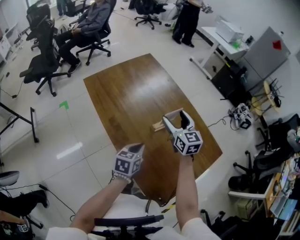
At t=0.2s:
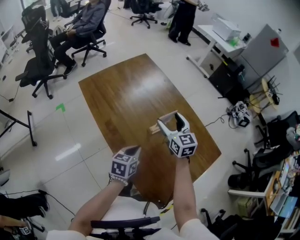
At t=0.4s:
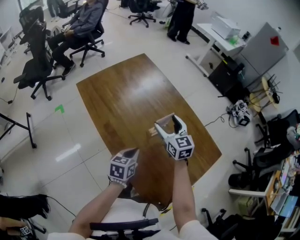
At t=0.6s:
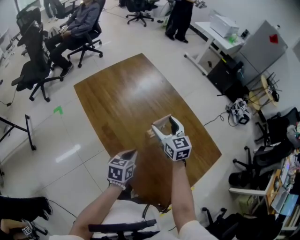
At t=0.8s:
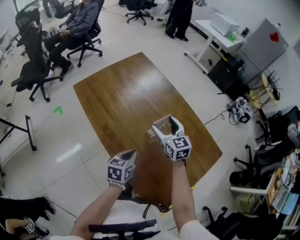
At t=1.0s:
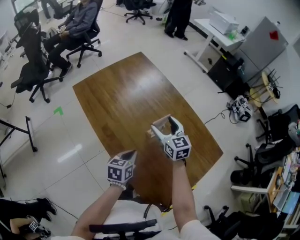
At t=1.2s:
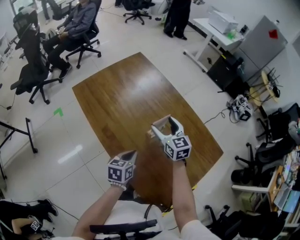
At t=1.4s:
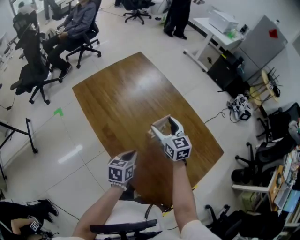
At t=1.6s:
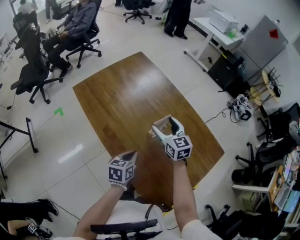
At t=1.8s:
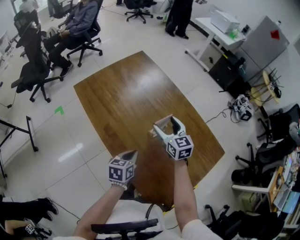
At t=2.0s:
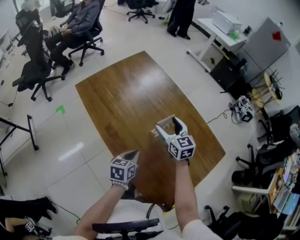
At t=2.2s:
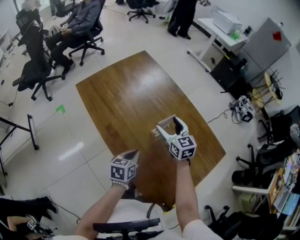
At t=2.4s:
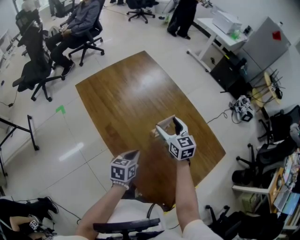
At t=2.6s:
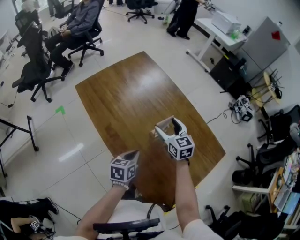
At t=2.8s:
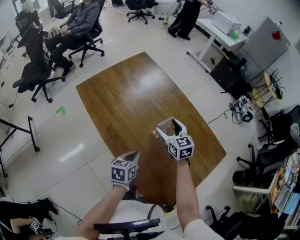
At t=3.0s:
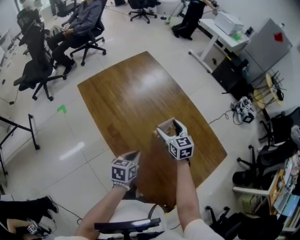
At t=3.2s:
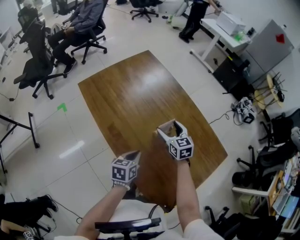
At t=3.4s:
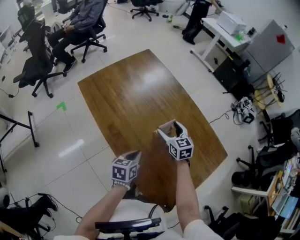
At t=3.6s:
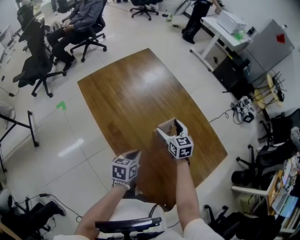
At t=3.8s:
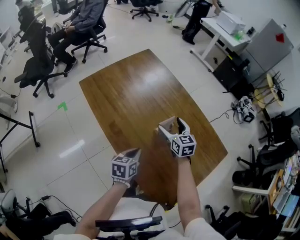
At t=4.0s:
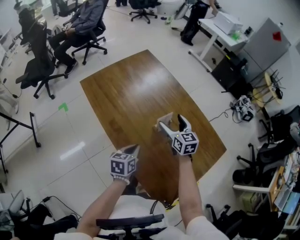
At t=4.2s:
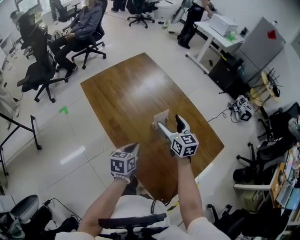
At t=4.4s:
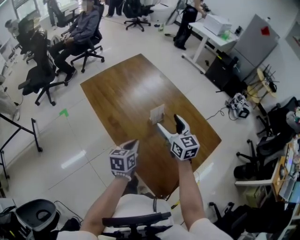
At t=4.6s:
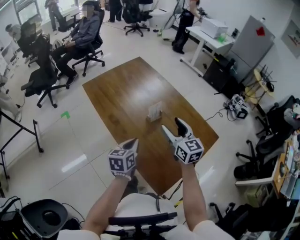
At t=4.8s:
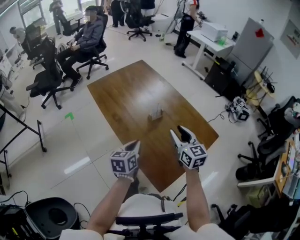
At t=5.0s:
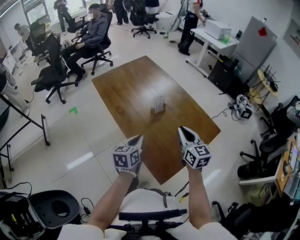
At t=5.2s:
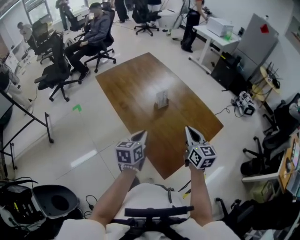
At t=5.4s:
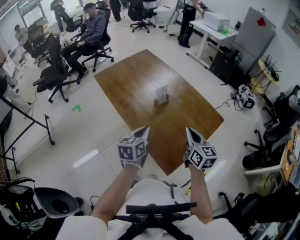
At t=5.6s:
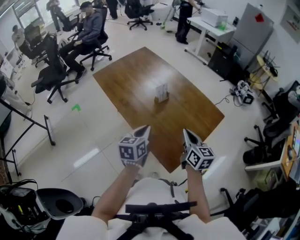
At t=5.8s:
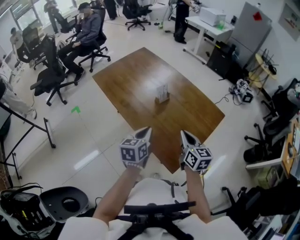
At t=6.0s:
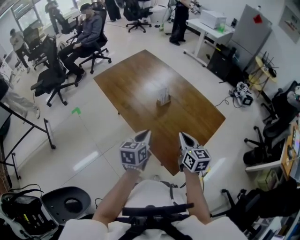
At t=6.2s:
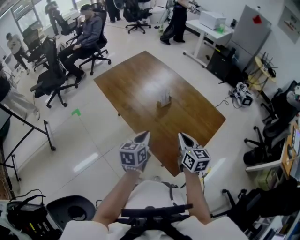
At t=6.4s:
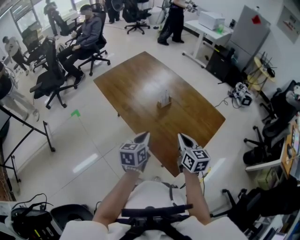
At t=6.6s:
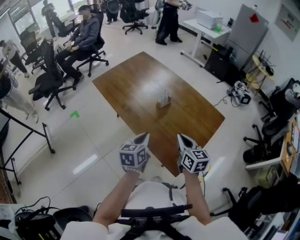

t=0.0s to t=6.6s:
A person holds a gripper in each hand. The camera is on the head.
t=0.0s to t=1.6s: The left gripper moves about 5 cm. Meanwhile the right gripper is displaced downward by roughly 5 cm.
t=1.6s to t=3.2s: The right gripper shifts roughly 5 cm downward.
t=3.2s to t=5.0s: The right gripper is displaced backward and upward by approximately 30 cm, and closes; the left gripper travels backward and upward by roughly 20 cm.
t=5.0s to t=6.6s: The right gripper is displaced backward and to the left by about 10 cm.

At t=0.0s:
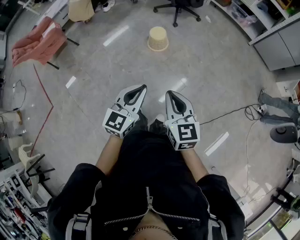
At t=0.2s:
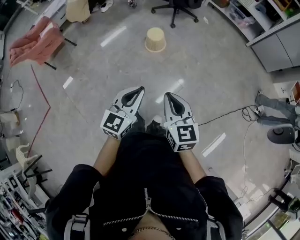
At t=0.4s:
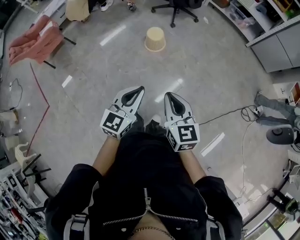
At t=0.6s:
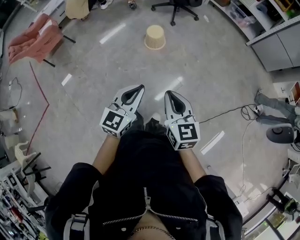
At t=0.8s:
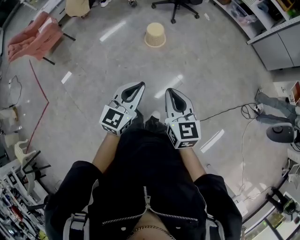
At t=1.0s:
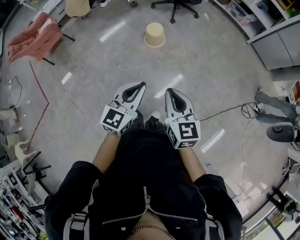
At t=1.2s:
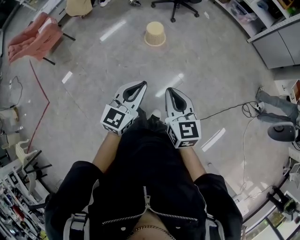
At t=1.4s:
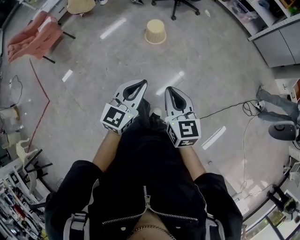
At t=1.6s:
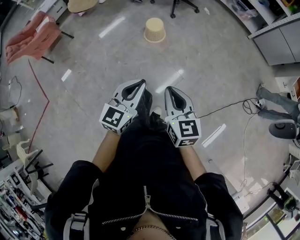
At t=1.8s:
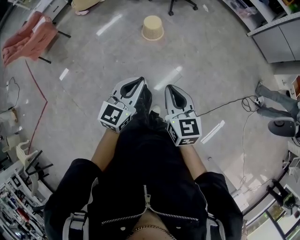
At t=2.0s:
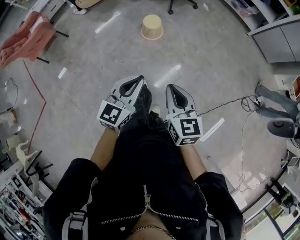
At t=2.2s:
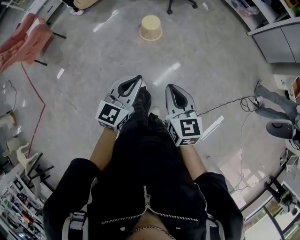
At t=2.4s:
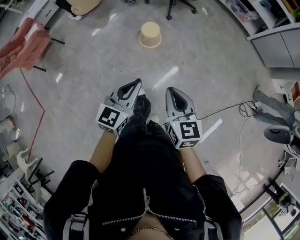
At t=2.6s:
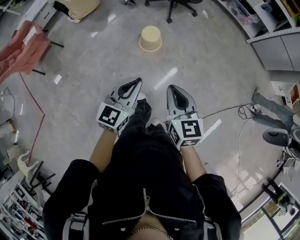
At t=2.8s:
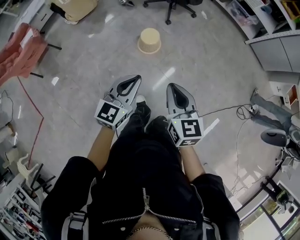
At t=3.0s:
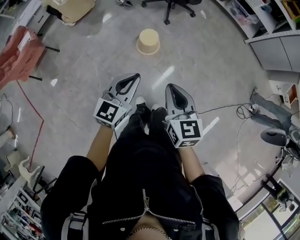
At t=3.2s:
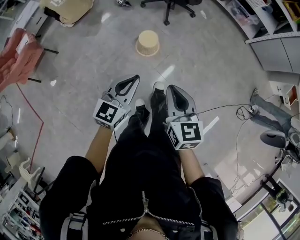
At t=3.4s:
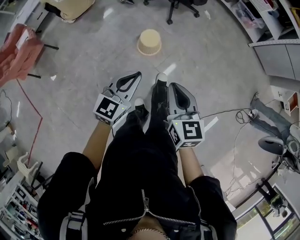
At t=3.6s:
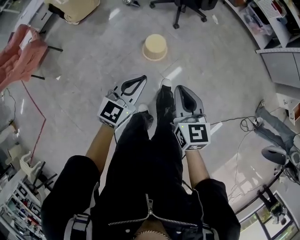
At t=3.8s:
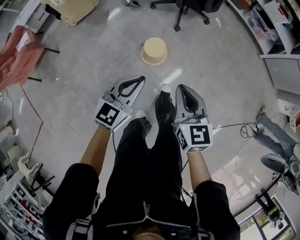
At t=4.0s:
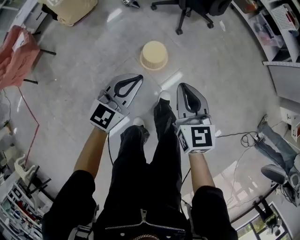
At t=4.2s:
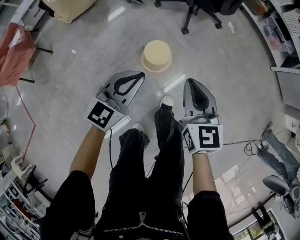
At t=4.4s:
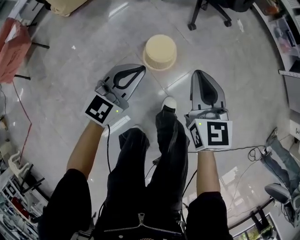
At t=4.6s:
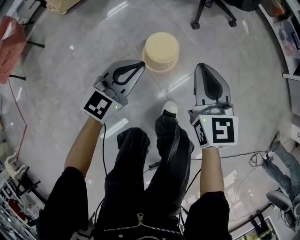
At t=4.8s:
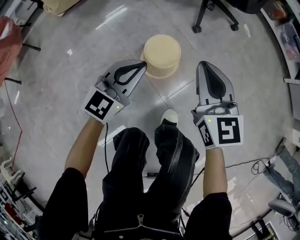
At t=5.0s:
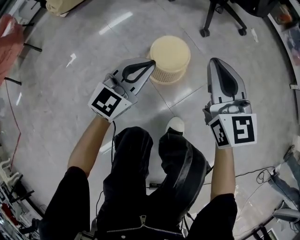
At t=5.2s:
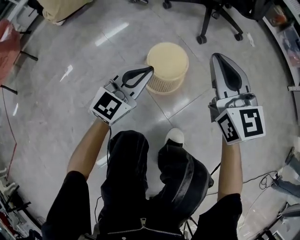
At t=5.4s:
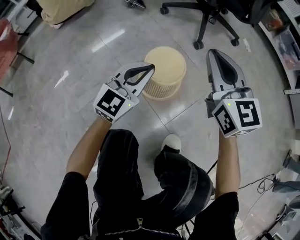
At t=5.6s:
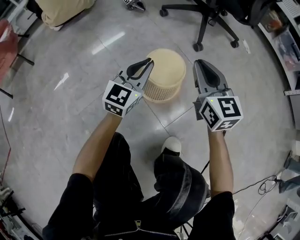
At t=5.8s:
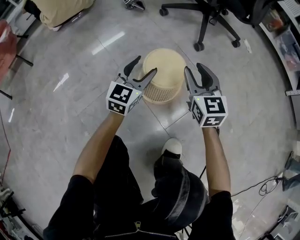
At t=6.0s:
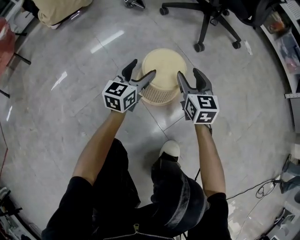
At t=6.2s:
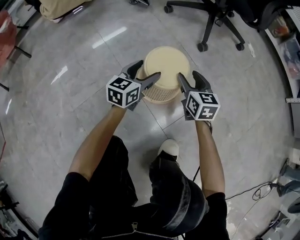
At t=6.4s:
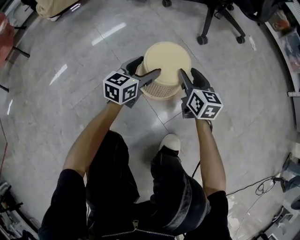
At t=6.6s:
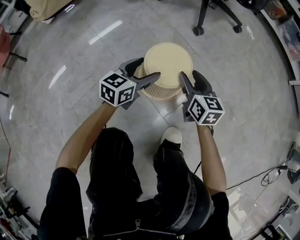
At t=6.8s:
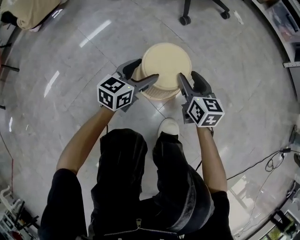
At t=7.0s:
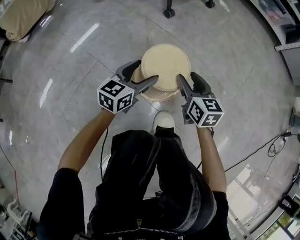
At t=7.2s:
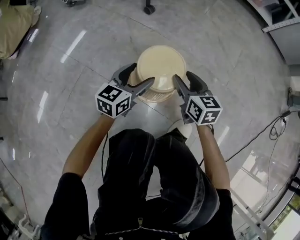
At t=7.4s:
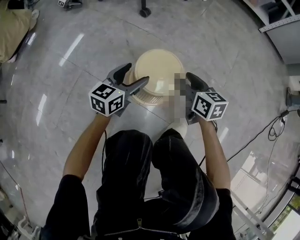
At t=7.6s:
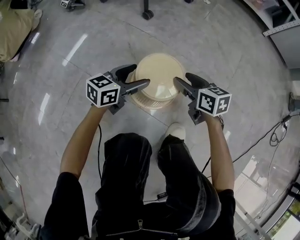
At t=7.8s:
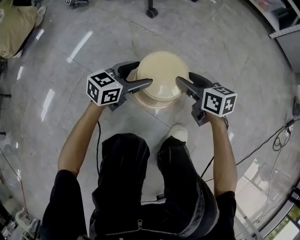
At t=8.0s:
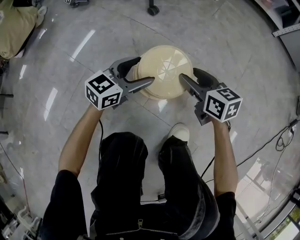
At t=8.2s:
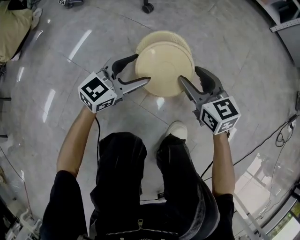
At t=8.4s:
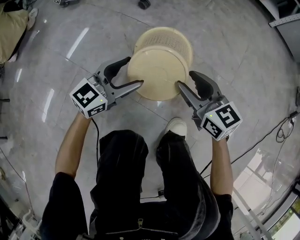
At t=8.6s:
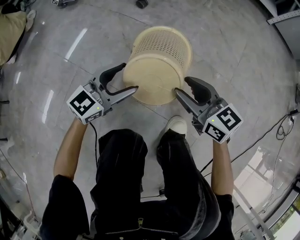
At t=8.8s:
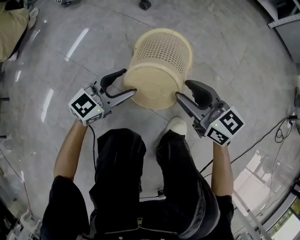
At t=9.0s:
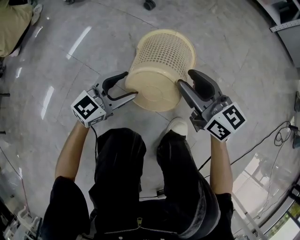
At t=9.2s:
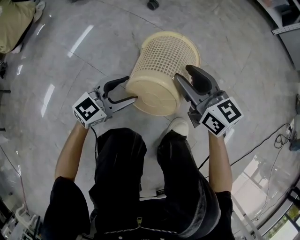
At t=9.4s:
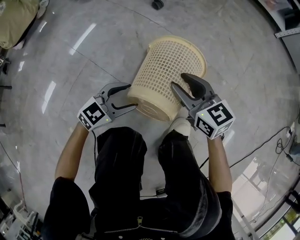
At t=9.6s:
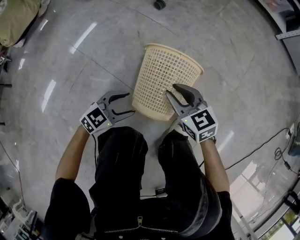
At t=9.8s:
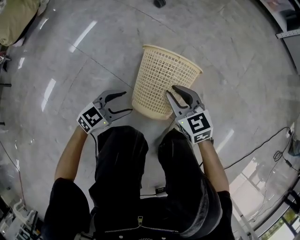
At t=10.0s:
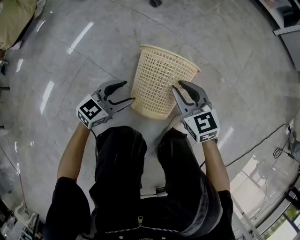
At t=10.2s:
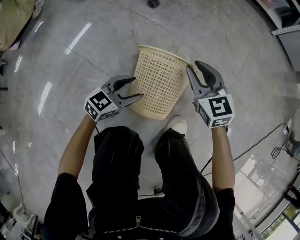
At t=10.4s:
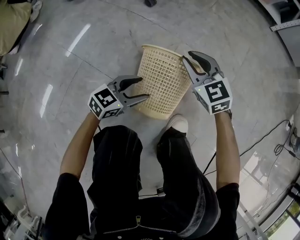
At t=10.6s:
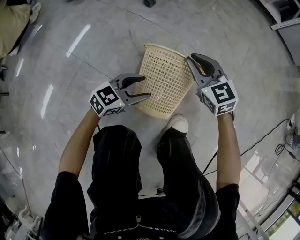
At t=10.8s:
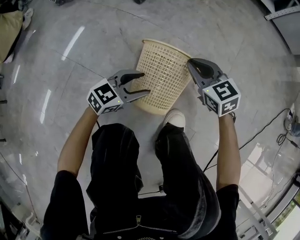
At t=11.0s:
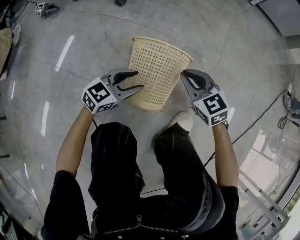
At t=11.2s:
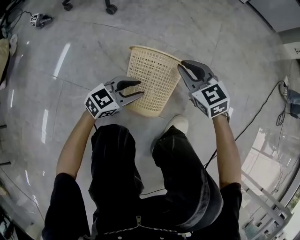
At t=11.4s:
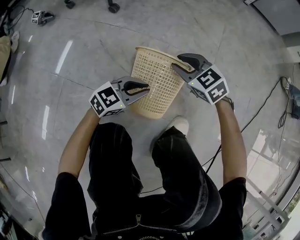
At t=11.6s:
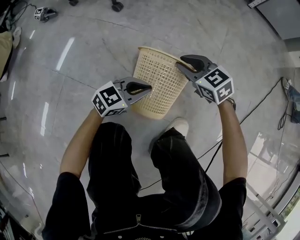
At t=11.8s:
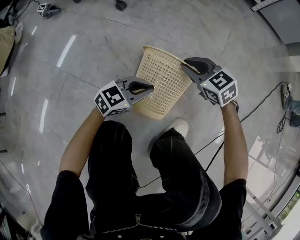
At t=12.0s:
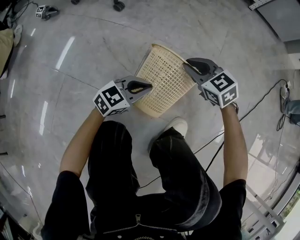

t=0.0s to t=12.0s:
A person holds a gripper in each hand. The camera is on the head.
t=0.0s to t=1.6s: There are only small adjustments of the grippers.
t=1.6s to t=3.0s: The left gripper shifts some 30 cm forward and to the left; the right gripper travels forward by approximately 25 cm.
t=3.0s to t=4.4s: The right gripper shifts some 50 cm forward and downward. The left gripper moves downward and forward, roughly 40 cm.
t=4.4s to t=6.0s: The two grippers go some 40 cm downward. The right gripper opens up. Meanwhile the left gripper rotates roughly 20 degrees, and opens its fingers.
t=6.0s to t=7.6s: The left gripper shifts roughly 20 cm to the right, and changes its angle by about 40 degrees. The right gripper moves to the right and backward, about 25 cm, and swivels approximately 30 degrees.
t=7.6s to t=9.0s: The right gripper moves upward, approximately 10 cm, and swivels about 30 degrees. Meanwhile the left gripper goes some 5 cm backward, and rotates roughly 20 degrees.
t=9.0s to t=10.4s: The right gripper heads forward and downward, covering roughly 10 cm, rotates approximately 30 degrees, and closes up, while the left gripper heads downward, covering approximately 5 cm.
t=10.4s to t=12.0s: Both grippers travel together to the right, some 10 cm. The left gripper closes its fingers.

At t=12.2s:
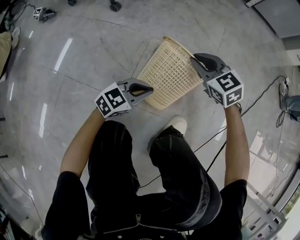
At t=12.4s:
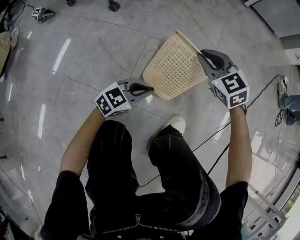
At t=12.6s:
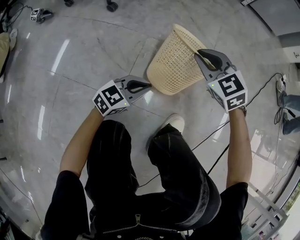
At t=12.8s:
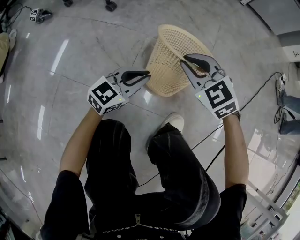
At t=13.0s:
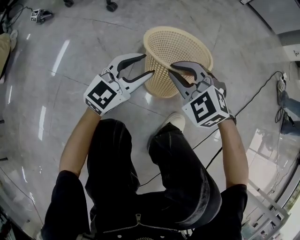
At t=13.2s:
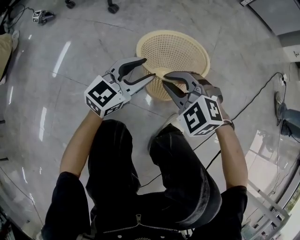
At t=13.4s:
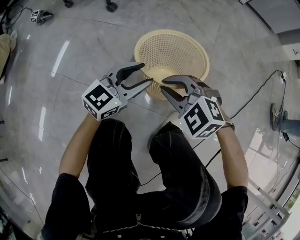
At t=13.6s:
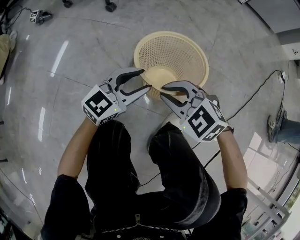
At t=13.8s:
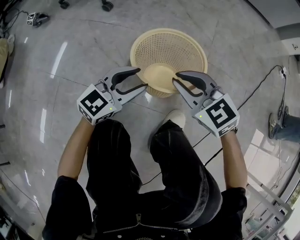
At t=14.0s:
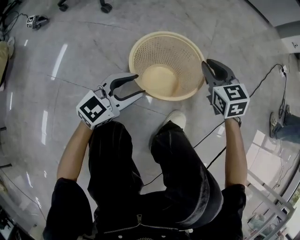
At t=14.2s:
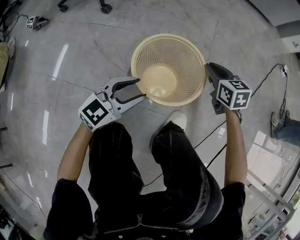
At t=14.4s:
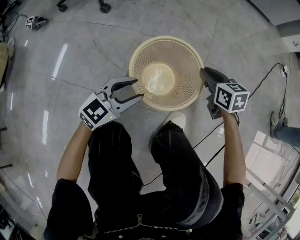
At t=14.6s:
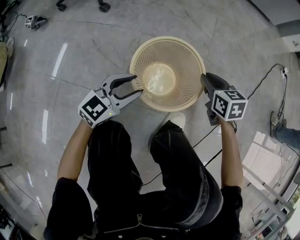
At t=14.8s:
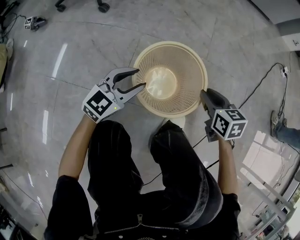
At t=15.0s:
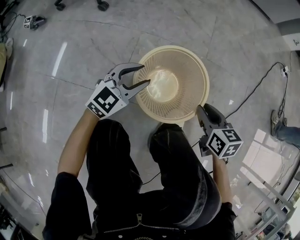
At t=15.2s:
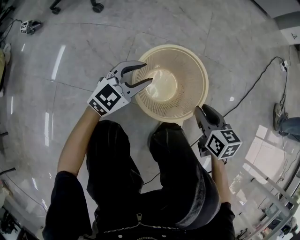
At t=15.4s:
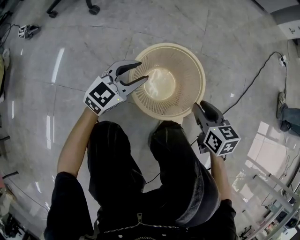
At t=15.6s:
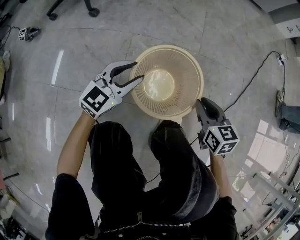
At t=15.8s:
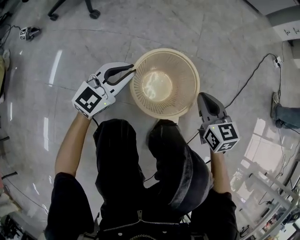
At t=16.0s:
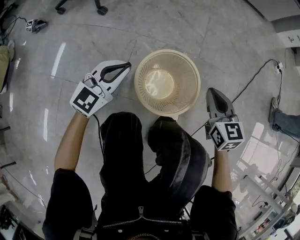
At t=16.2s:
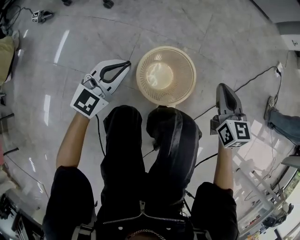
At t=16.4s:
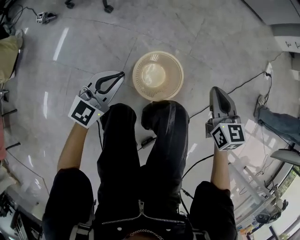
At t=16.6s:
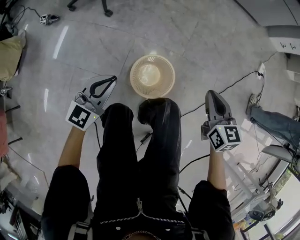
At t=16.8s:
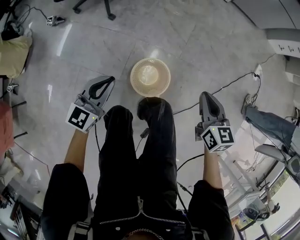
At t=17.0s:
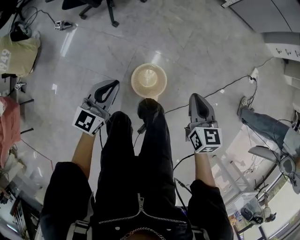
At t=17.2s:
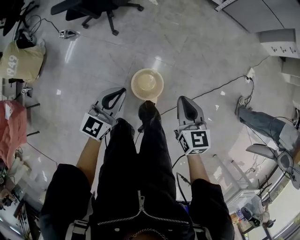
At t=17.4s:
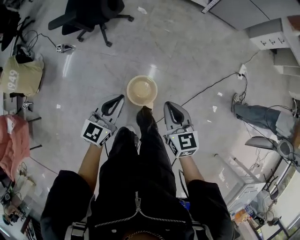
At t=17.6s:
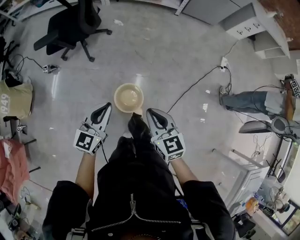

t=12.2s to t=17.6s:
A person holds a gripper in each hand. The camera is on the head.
t=12.2s to t=13.6s: The right gripper travels backward and to the left by roughly 20 cm, and turns by approximately 20 degrees. Meanwhile the left gripper travels upward by some 10 cm, and opens its fingers.
t=13.6s to t=15.0s: The left gripper moves some 5 cm. The right gripper goes about 20 cm to the right, and rotates around the line of its fingers by roughly 60 degrees, clockwise from behind.
t=15.0s to t=16.2s: The two grippers go some 20 cm upward. The right gripper rotates approximately 20 degrees, and closes its fingers. The left gripper closes.
t=16.2s to t=17.6s: The two grippers go about 50 cm upward.
